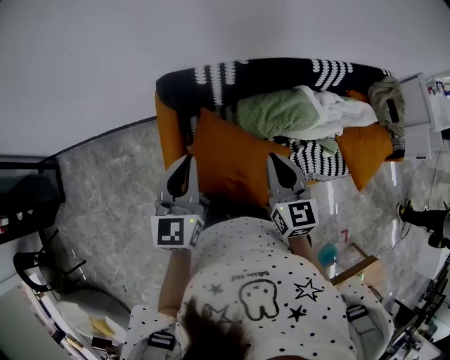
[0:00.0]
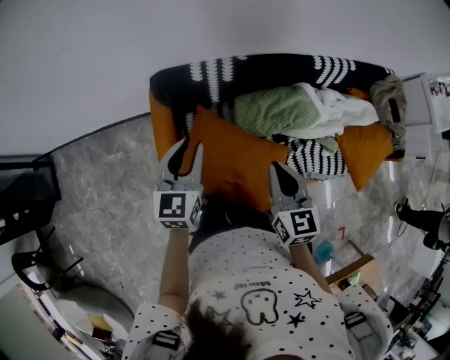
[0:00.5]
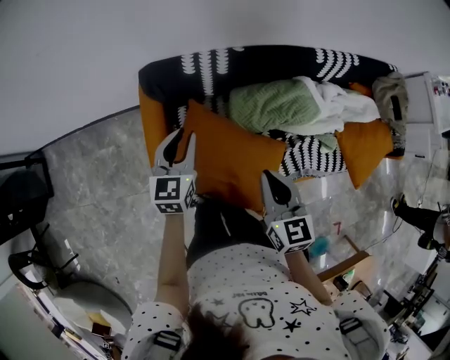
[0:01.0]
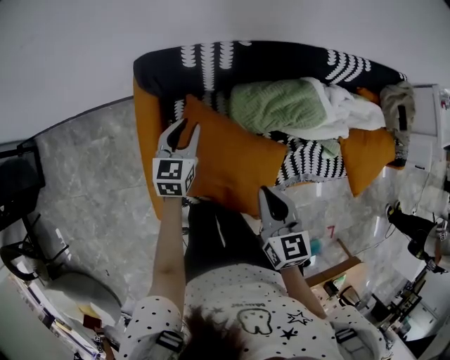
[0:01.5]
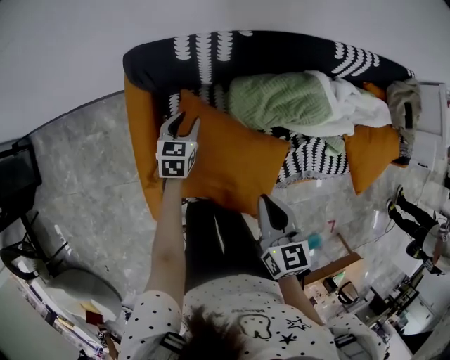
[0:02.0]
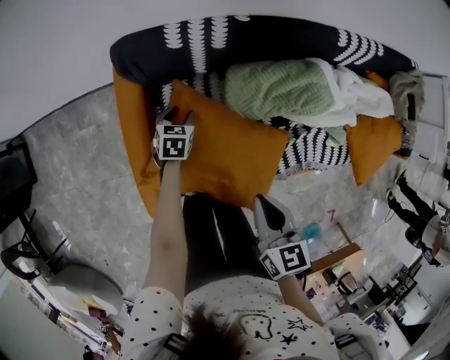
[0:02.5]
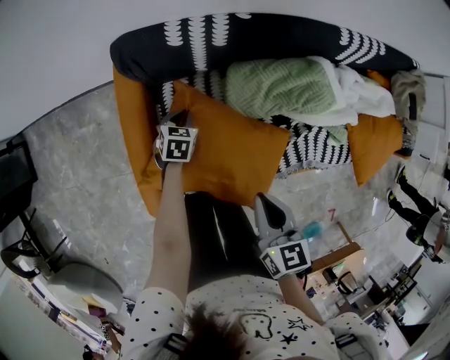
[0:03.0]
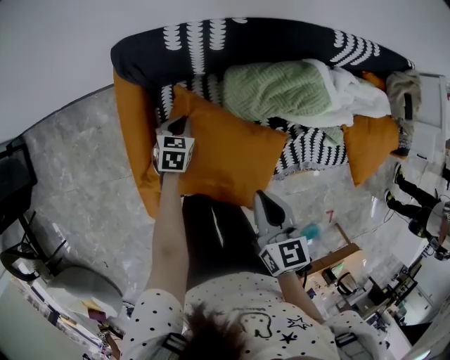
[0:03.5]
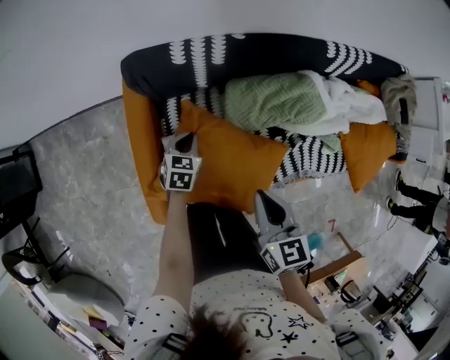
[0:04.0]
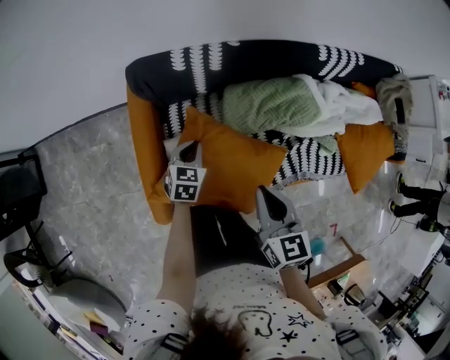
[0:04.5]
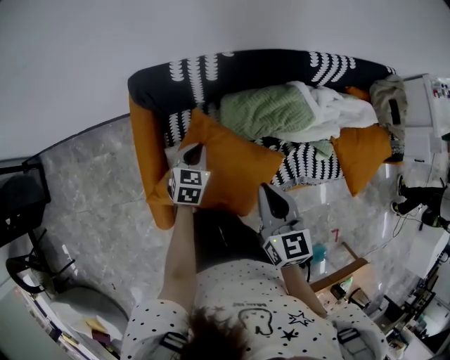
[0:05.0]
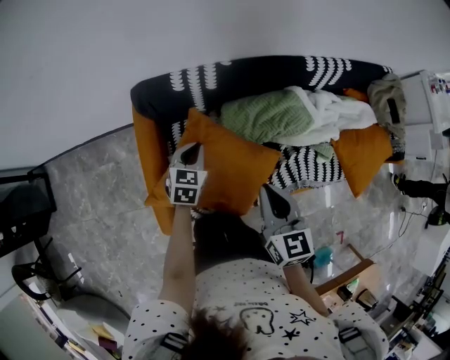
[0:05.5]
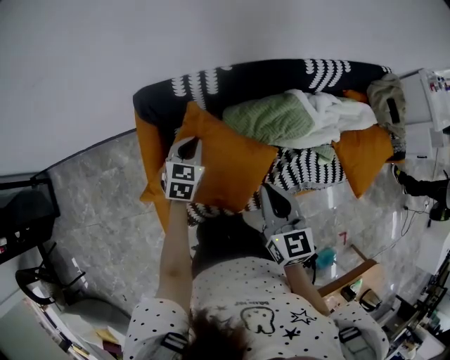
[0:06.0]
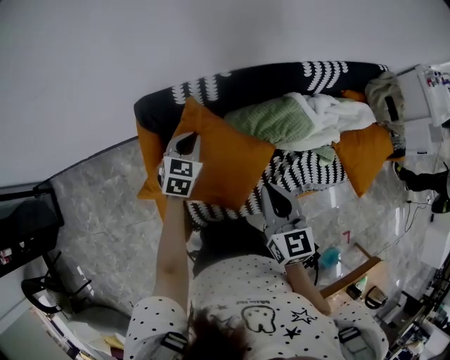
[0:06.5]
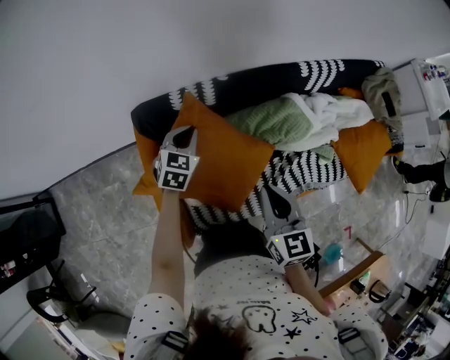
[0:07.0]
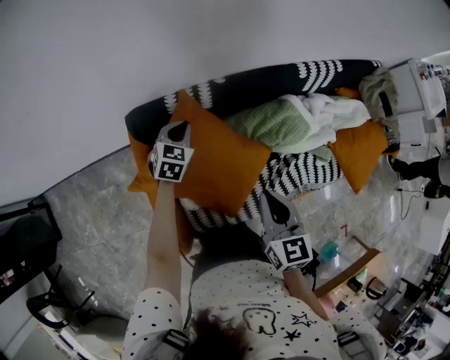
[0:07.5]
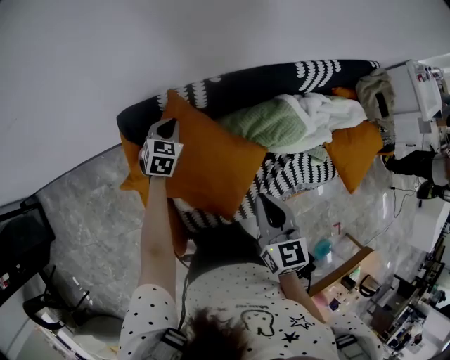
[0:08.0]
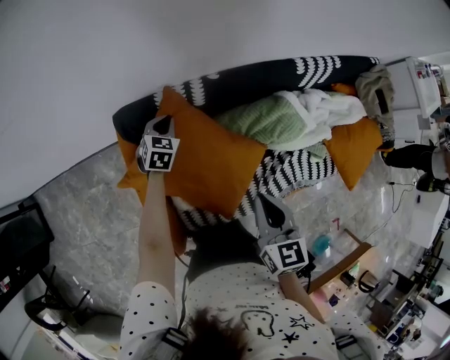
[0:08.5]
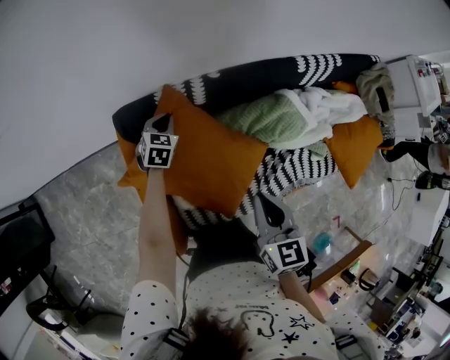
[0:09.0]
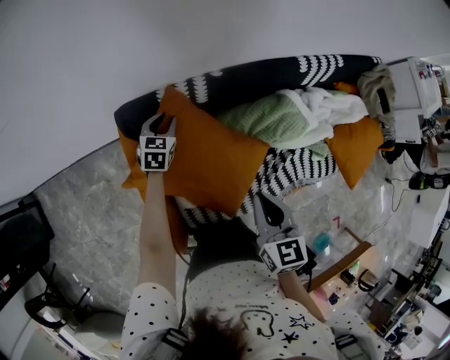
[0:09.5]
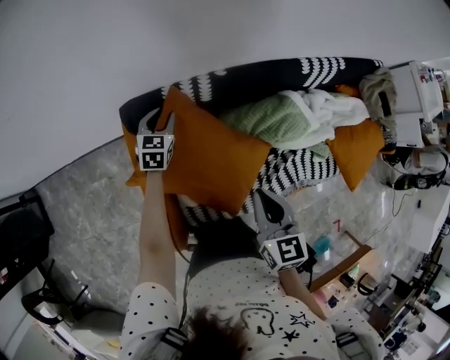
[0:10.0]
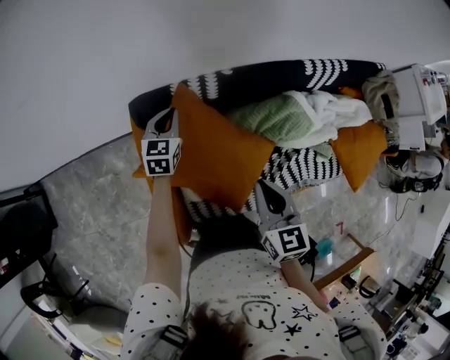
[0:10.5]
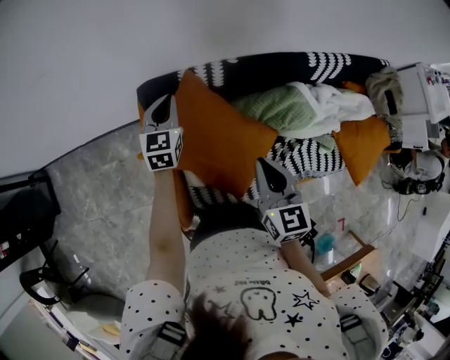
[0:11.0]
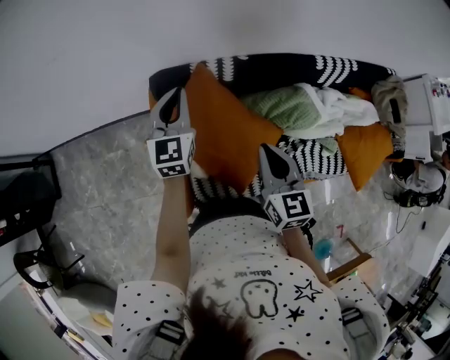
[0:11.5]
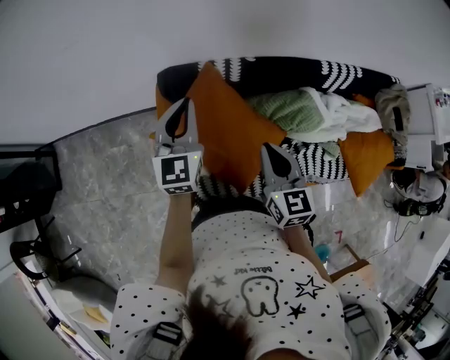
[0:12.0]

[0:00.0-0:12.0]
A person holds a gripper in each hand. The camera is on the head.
0:00.0 to 0:02.0: The left gripper is displaced downward and forward by some 40 cm, tilts its fingers approximately 30 degrees downward, and opens its fingers. Meanwhile the right gripper moves downward, approximately 15 cm, and changes its angle by about 20 degrees.
0:02.0 to 0:04.0: The left gripper moves backward, some 5 cm, travels downward and back again, about 10 cm each way, and closes its fingers.
0:04.0 to 0:06.0: The right gripper goes about 5 cm upward. Meanwhile the left gripper goes approximately 15 cm upward.
0:06.0 to 0:08.0: The left gripper is displaced forward by some 15 cm; the right gripper changes place by roughly 5 cm.
0:08.0 to 0:10.0: The left gripper opens.
0:10.0 to 0:12.0: The left gripper shifts some 30 cm upward and backward, rotates about 30 degrees, and closes its fingers. Meanwhile the right gripper heads upward, covering approximately 5 cm.

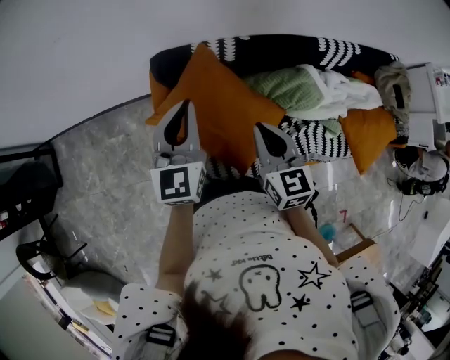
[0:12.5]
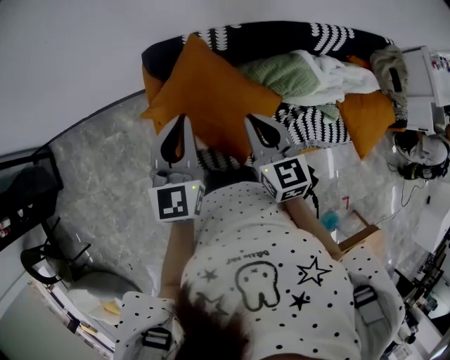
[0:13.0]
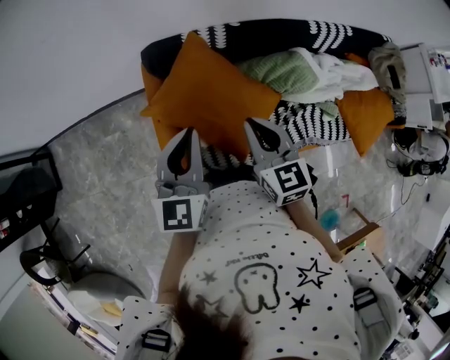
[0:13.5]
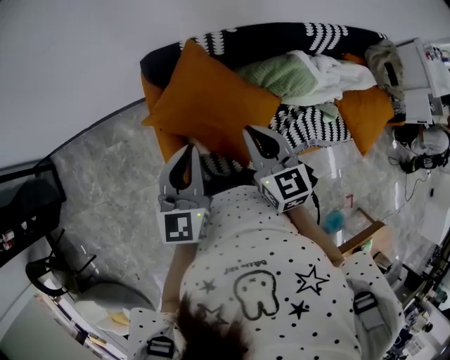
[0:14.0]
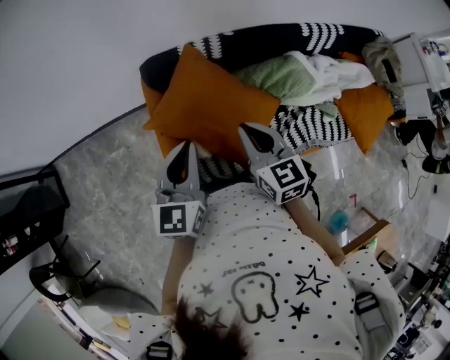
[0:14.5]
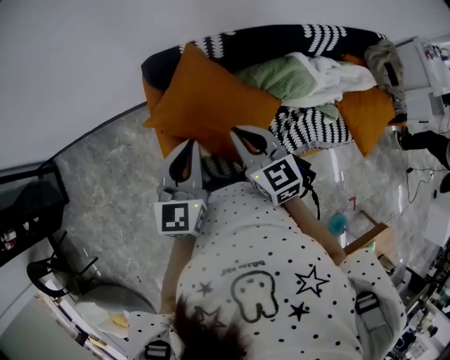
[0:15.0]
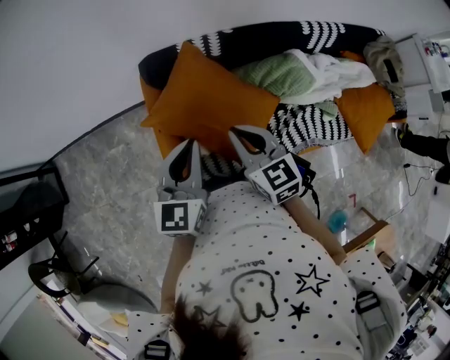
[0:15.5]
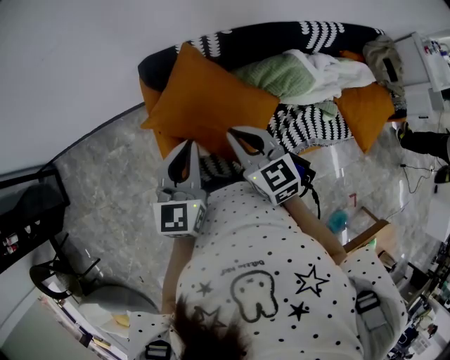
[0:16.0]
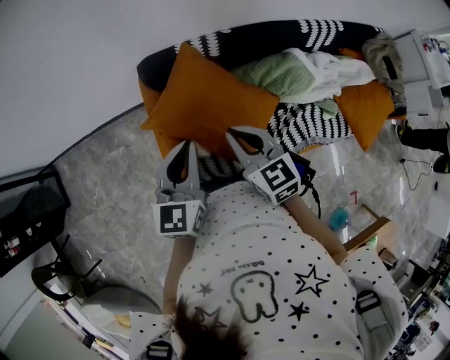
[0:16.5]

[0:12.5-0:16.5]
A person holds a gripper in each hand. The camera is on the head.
0:12.5 to 0:14.5: The left gripper goes some 10 cm backward.
0:14.5 to 0:16.5: The grippers move only a little.

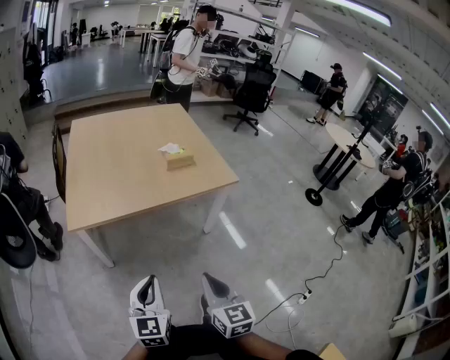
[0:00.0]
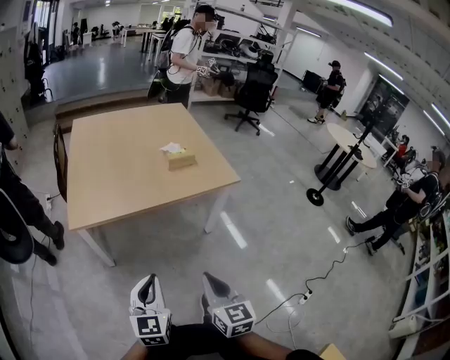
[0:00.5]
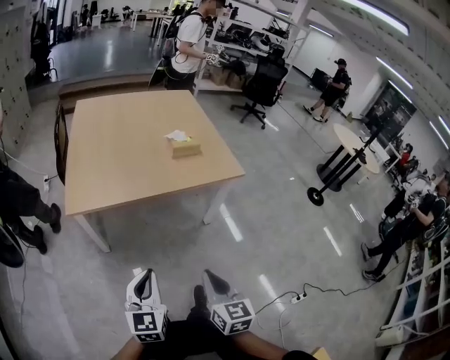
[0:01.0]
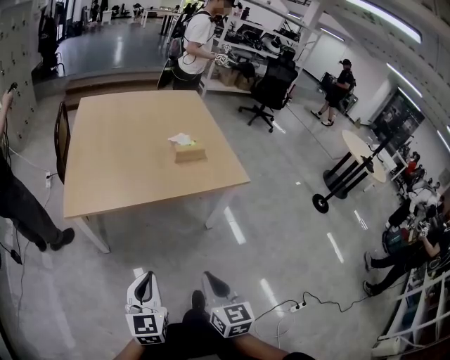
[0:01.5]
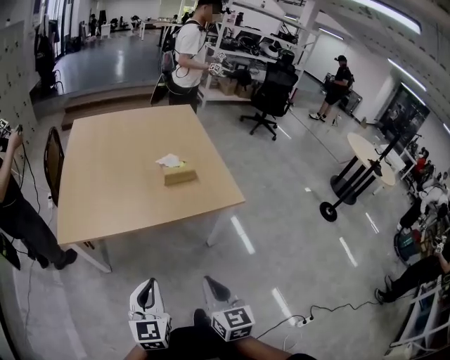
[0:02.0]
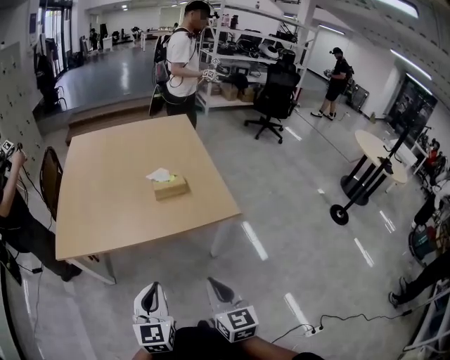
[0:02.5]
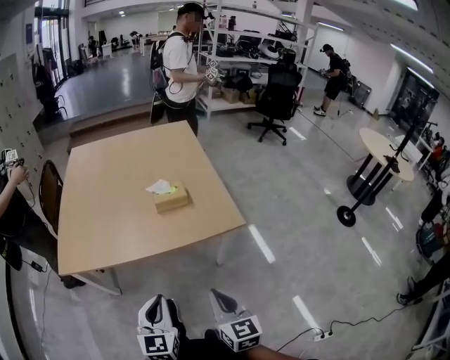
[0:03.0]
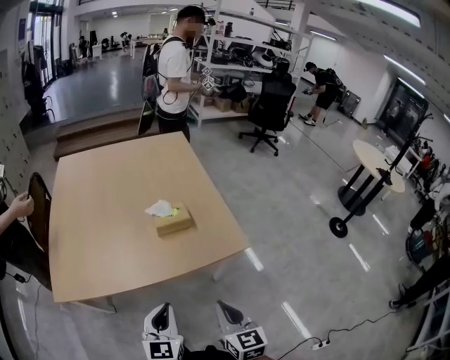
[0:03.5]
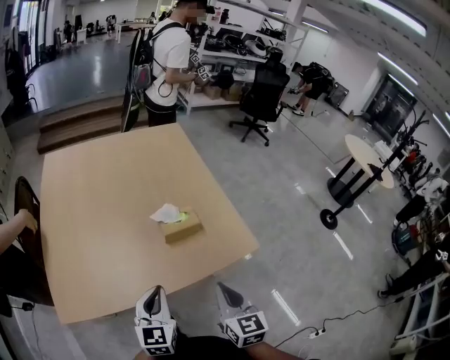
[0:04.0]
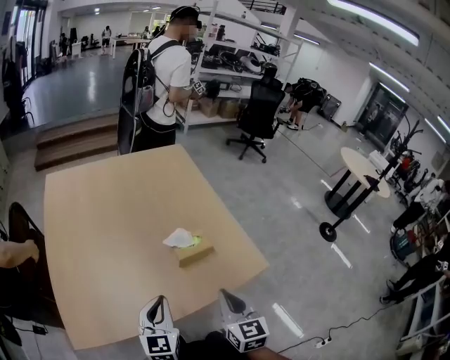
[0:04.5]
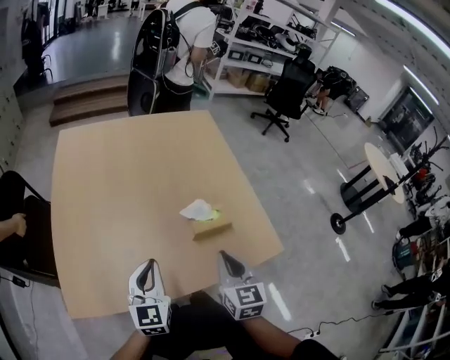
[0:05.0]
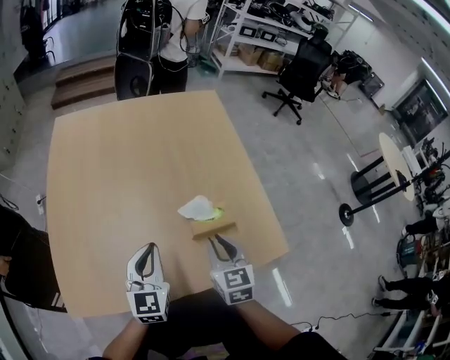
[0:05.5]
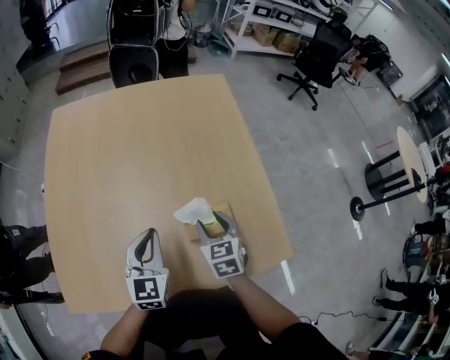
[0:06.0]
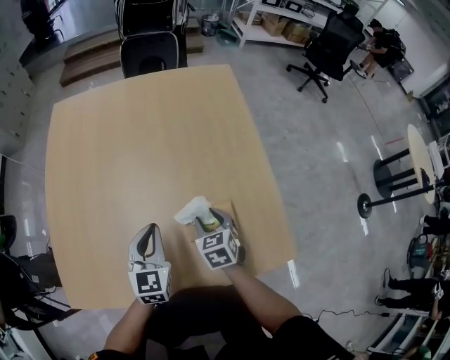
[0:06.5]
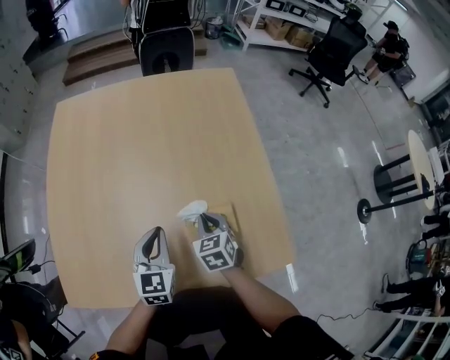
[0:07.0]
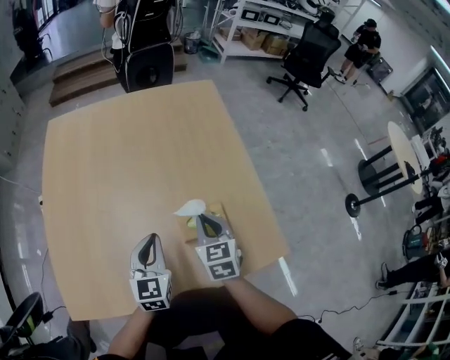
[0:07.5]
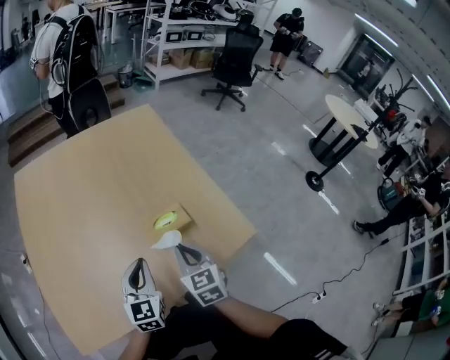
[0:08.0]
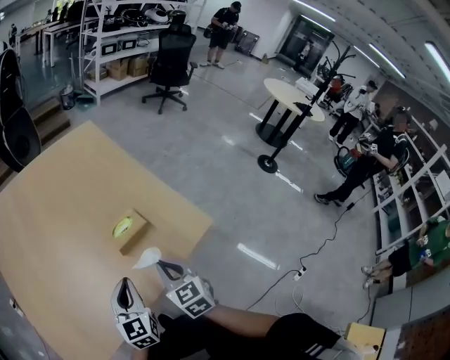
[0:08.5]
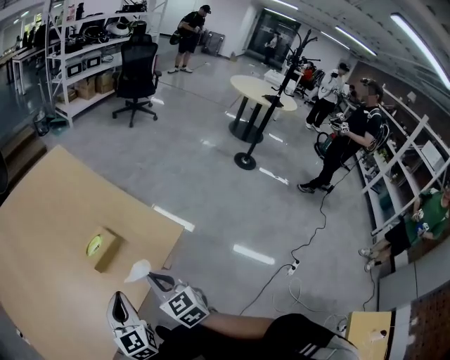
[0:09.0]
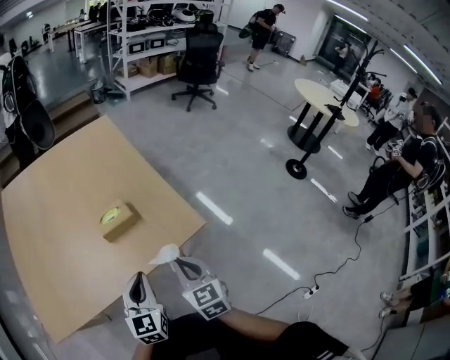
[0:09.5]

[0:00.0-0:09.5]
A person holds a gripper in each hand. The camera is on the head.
0:00.0 to 0:02.0: The grippers both shift forward and to the right by about 15 cm.
0:02.0 to 0:04.0: Both grippers move forward, approximately 25 cm.
0:04.0 to 0:05.5: Both grippers travel together forward and to the left, approximately 20 cm.
0:05.5 to 0:07.5: The right gripper shifts approximately 10 cm forward, goes downward and returns, about 10 cm each way, and opens, then closes again; the left gripper is displaced forward by roughly 5 cm.
0:07.5 to 0:09.5: The right gripper travels backward and to the right by some 30 cm; the left gripper shifts about 30 cm to the right and backward.

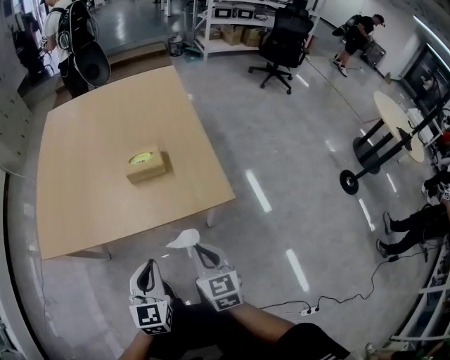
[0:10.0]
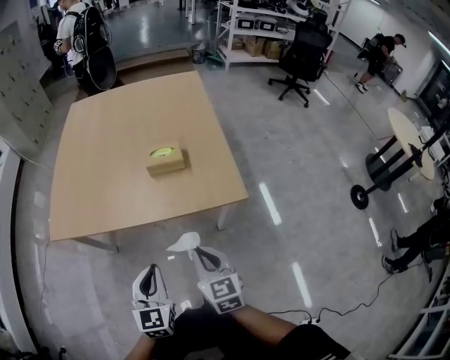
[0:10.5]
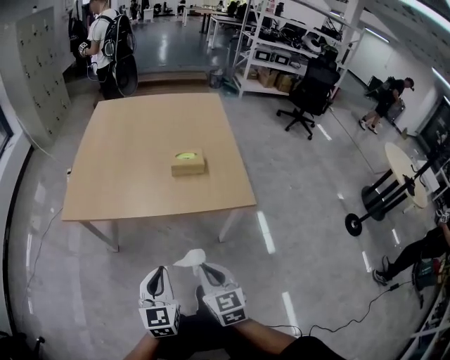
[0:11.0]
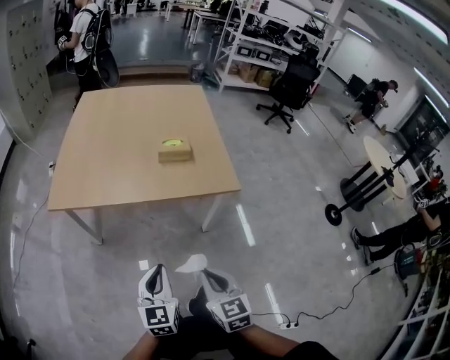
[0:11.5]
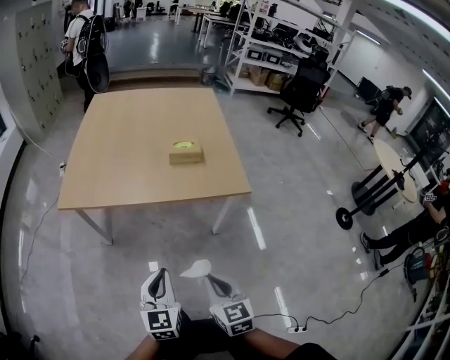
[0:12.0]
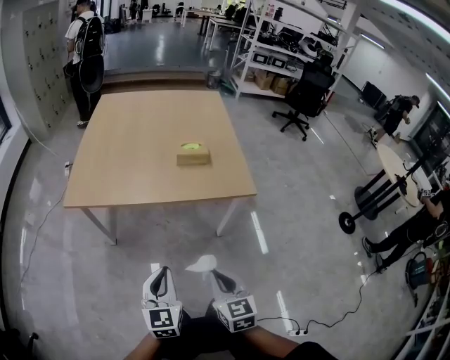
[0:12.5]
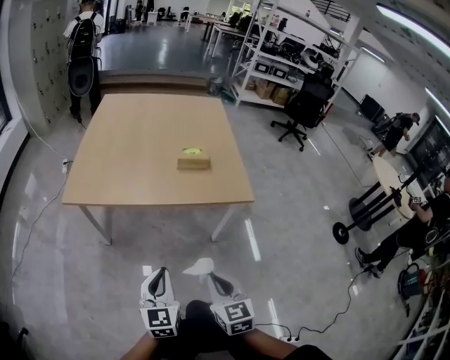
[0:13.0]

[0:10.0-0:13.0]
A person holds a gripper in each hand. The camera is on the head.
0:10.0 to 0:11.5: The grippers both shift backward and to the left by some 20 cm.
0:11.5 to 0:13.0: The grippers stay close to where they were, moving slightly.
